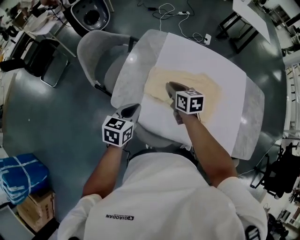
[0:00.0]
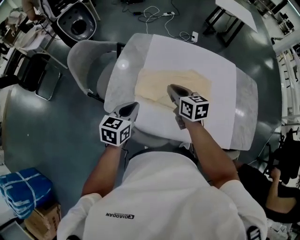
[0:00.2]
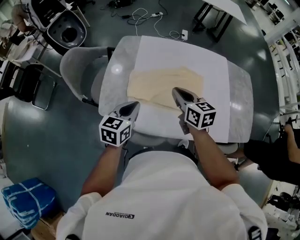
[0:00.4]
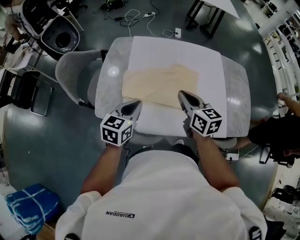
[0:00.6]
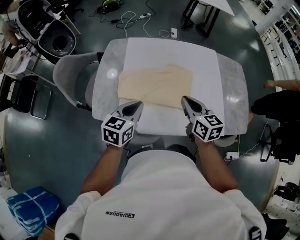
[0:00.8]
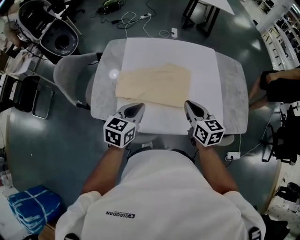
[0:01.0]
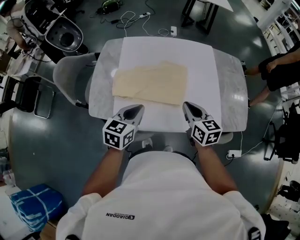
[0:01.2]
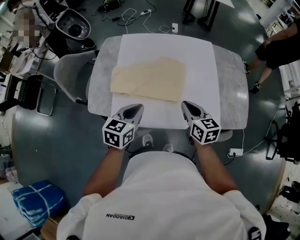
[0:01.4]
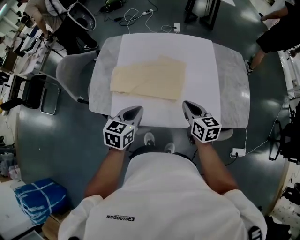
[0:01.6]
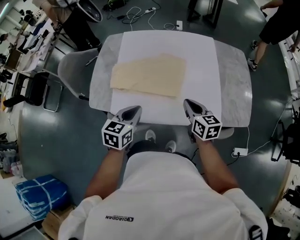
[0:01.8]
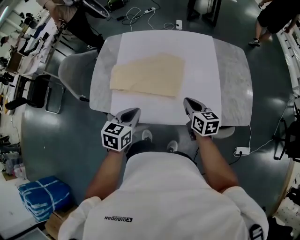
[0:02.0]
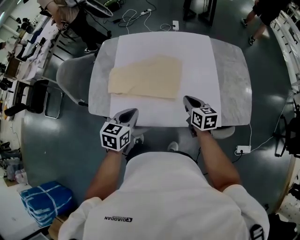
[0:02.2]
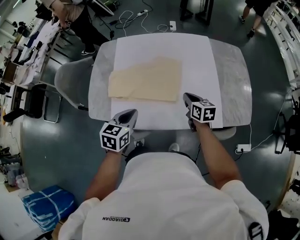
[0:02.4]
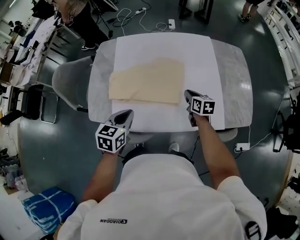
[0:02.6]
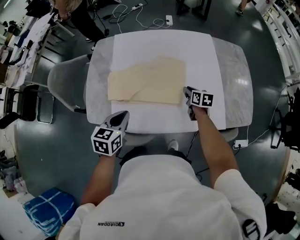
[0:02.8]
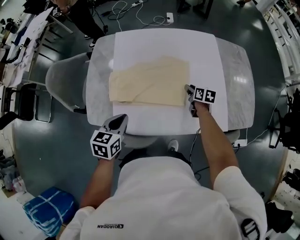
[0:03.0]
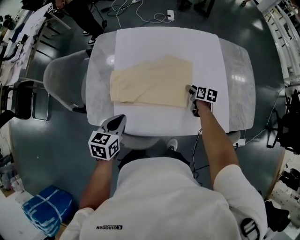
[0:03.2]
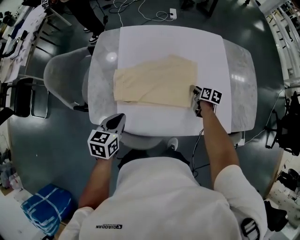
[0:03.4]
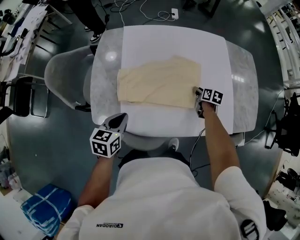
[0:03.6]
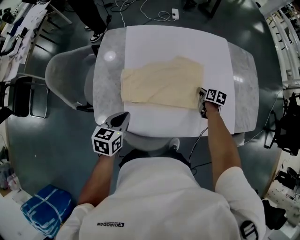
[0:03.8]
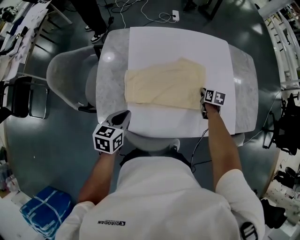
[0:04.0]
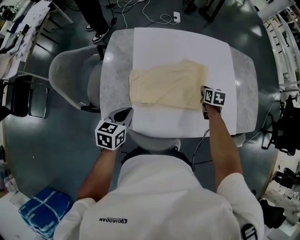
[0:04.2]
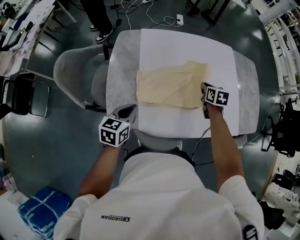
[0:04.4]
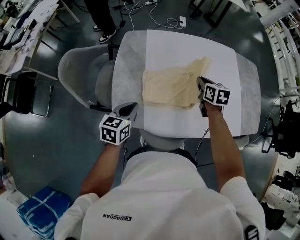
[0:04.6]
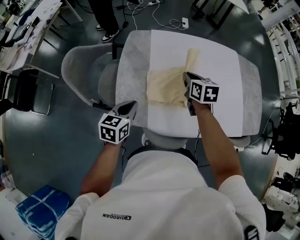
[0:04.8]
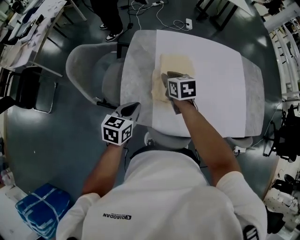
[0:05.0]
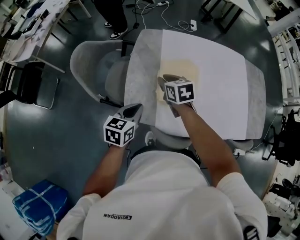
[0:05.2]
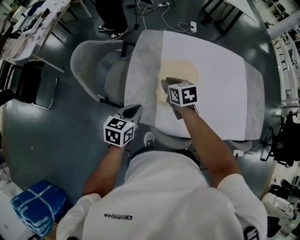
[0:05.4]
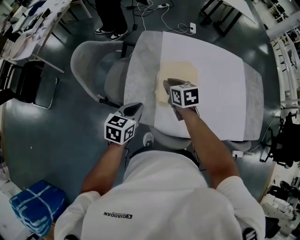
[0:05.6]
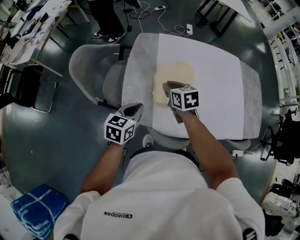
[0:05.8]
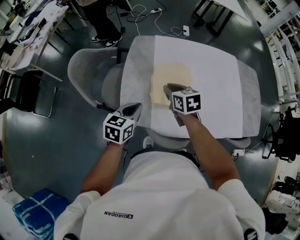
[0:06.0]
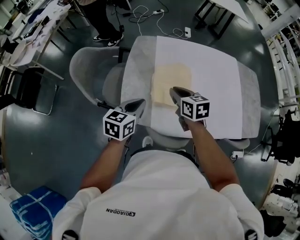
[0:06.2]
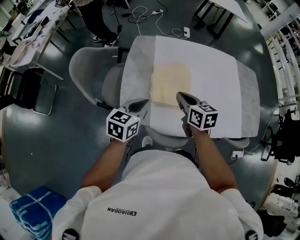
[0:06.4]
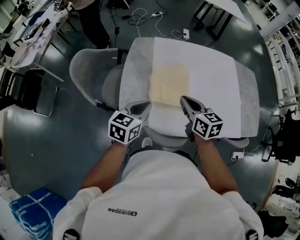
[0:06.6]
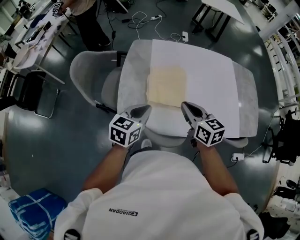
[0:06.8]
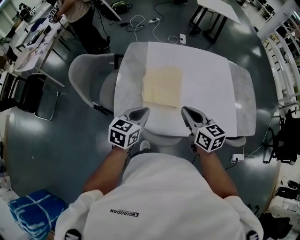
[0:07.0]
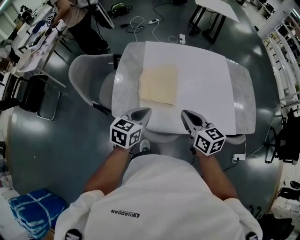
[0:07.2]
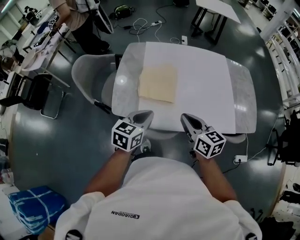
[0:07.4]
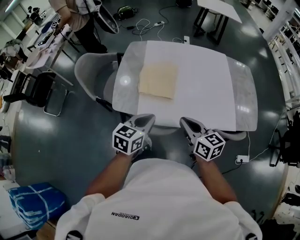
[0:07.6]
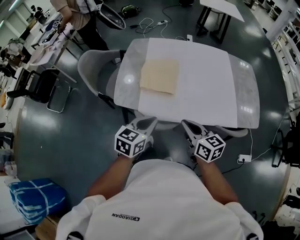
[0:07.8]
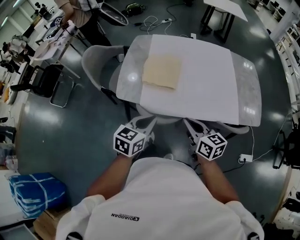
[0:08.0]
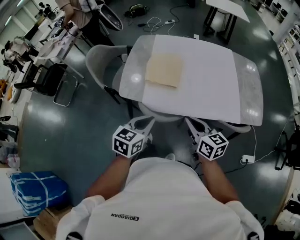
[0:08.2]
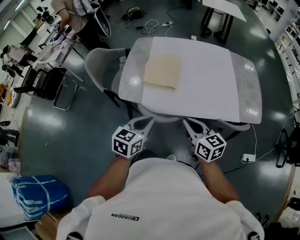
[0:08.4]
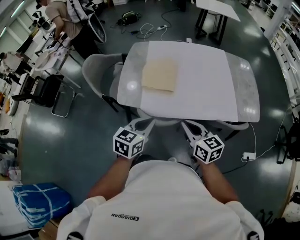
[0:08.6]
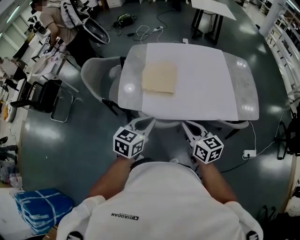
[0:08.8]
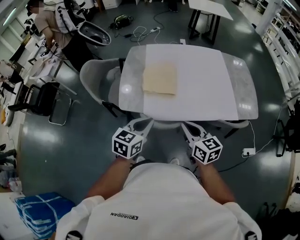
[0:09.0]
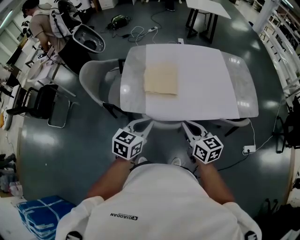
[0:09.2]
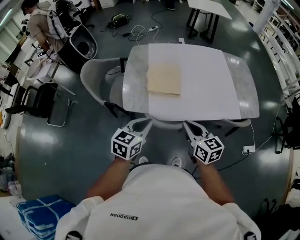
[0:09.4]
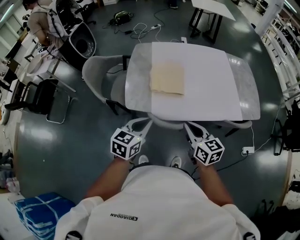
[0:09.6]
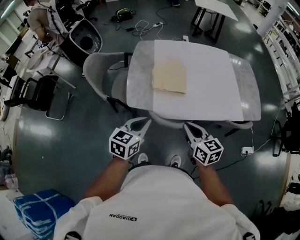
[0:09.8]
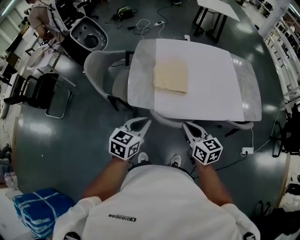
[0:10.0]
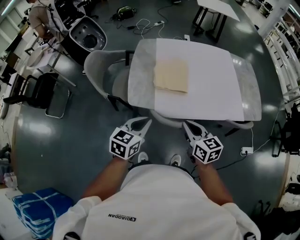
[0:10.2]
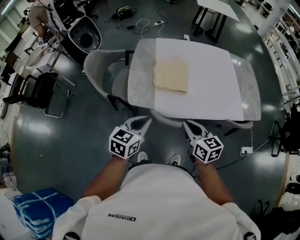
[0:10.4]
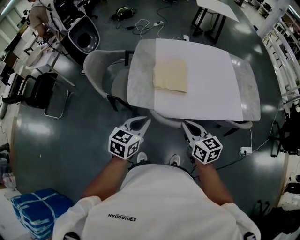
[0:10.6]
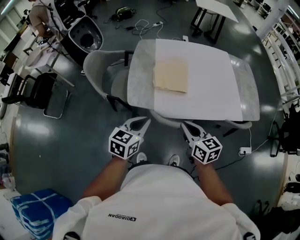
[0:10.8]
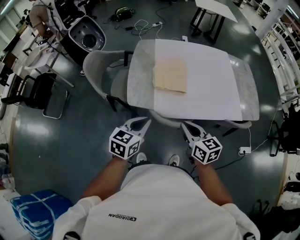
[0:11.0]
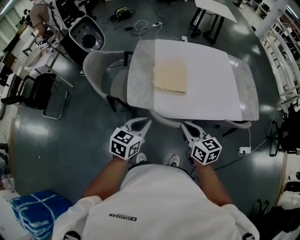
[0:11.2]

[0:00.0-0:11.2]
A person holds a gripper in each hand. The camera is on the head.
0:00.0 to 0:01.6: The right gripper goes about 40 cm to the right and backward, while the left gripper travels to the right by approximately 25 cm.
0:01.6 to 0:03.2: The right gripper travels downward and forward by roughly 30 cm, changes its angle by some 30 degrees, and opens, while the left gripper goes some 20 cm to the left, forward and downward.
0:03.2 to 0:04.8: The left gripper travels to the left by approximately 20 cm, while the right gripper travels to the left and upward by about 35 cm, turns by some 20 degrees, and closes its fingers.
0:04.8 to 0:06.4: The left gripper travels upward by about 5 cm. The right gripper is displaced backward by some 15 cm, and moves roughly 15 cm to the left and comes back.
0:06.4 to 0:08.0: The two grippers go approximately 35 cm backward and to the right.
0:08.0 to 0:09.6: Both grippers travel together to the left, some 15 cm.
0:09.6 to 0:11.2: The grippers stay close to where they were, moving slightly.

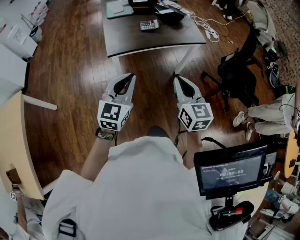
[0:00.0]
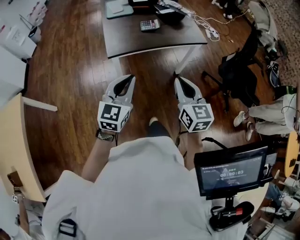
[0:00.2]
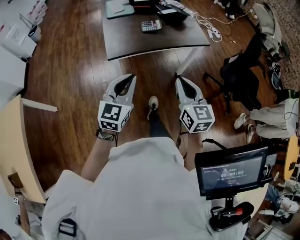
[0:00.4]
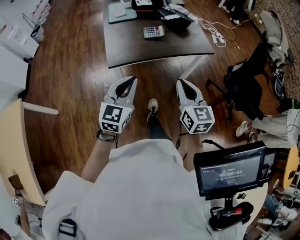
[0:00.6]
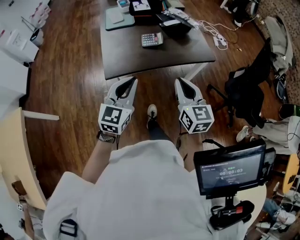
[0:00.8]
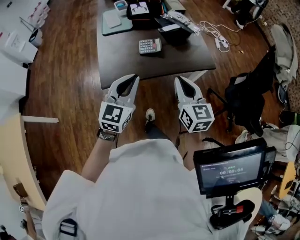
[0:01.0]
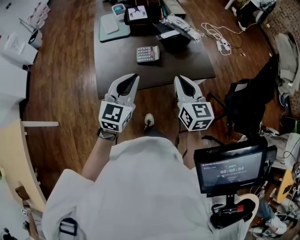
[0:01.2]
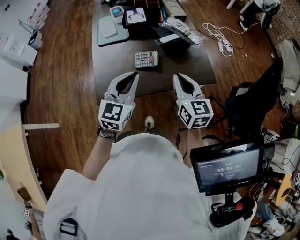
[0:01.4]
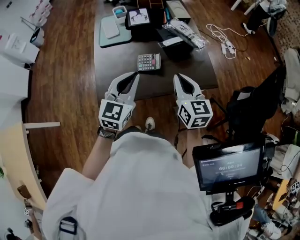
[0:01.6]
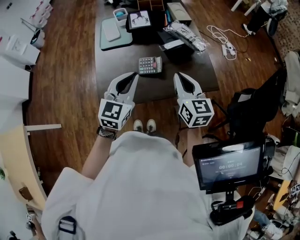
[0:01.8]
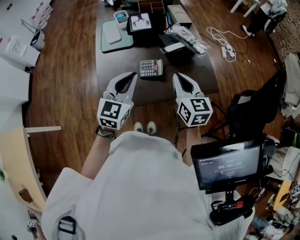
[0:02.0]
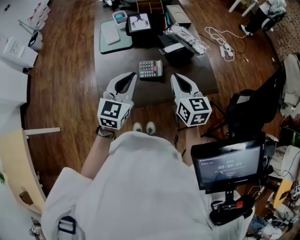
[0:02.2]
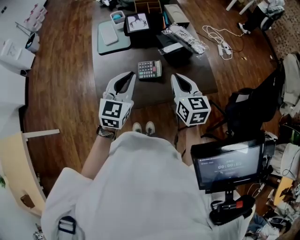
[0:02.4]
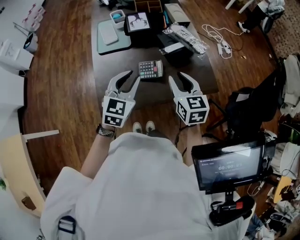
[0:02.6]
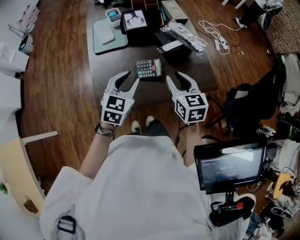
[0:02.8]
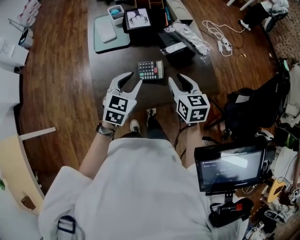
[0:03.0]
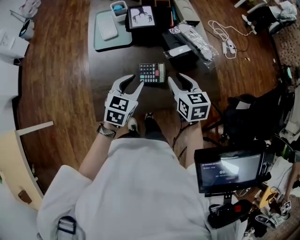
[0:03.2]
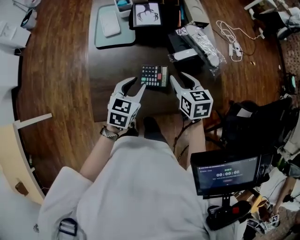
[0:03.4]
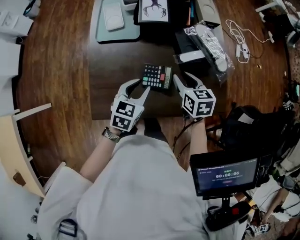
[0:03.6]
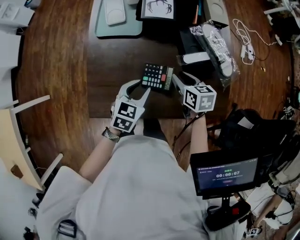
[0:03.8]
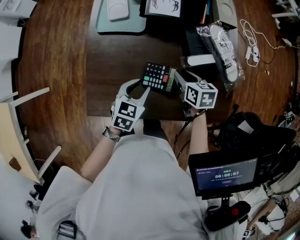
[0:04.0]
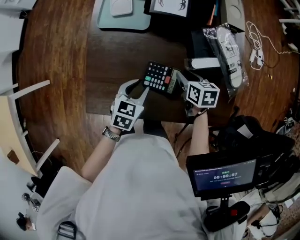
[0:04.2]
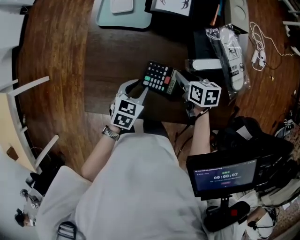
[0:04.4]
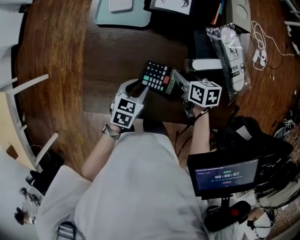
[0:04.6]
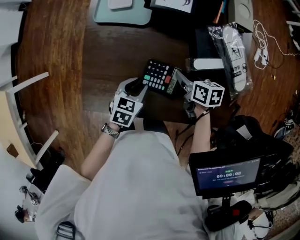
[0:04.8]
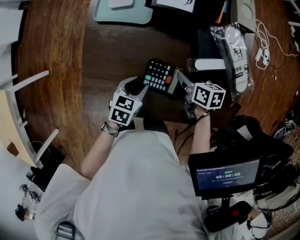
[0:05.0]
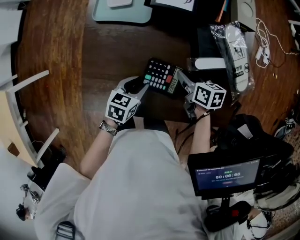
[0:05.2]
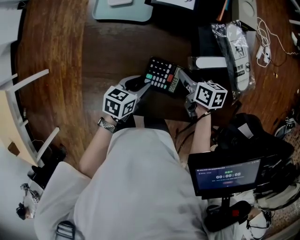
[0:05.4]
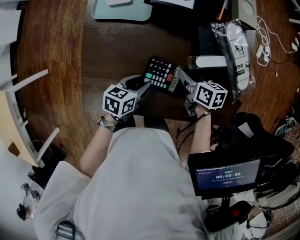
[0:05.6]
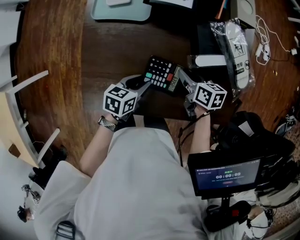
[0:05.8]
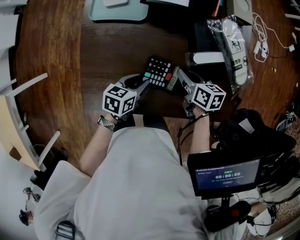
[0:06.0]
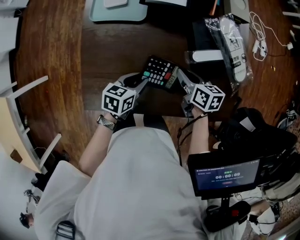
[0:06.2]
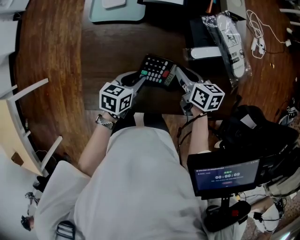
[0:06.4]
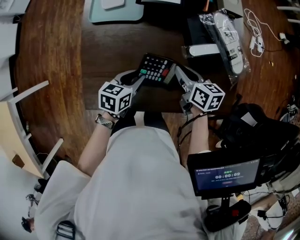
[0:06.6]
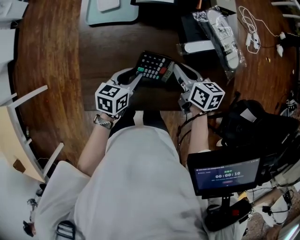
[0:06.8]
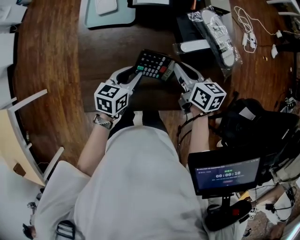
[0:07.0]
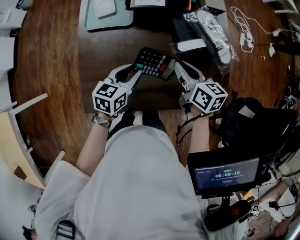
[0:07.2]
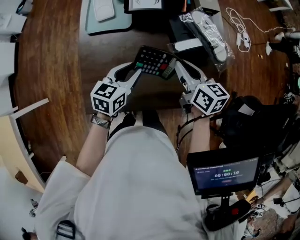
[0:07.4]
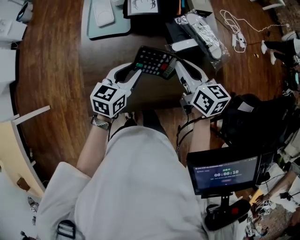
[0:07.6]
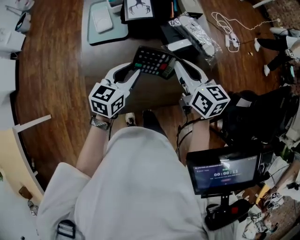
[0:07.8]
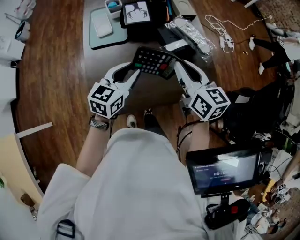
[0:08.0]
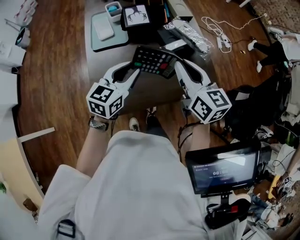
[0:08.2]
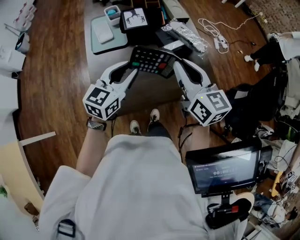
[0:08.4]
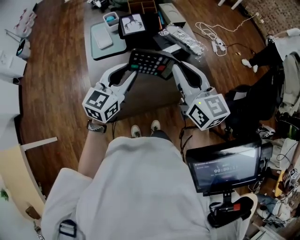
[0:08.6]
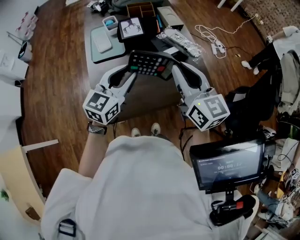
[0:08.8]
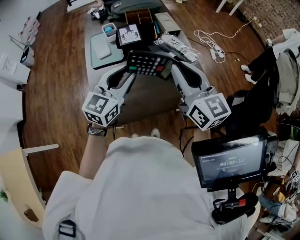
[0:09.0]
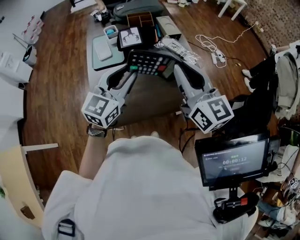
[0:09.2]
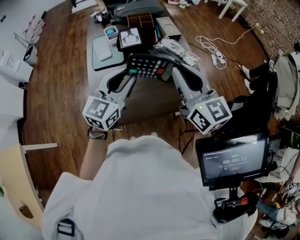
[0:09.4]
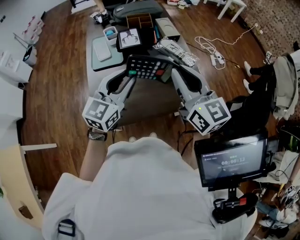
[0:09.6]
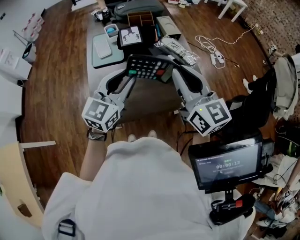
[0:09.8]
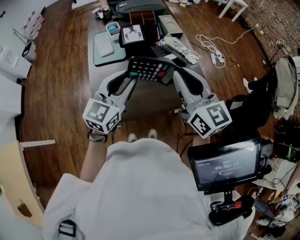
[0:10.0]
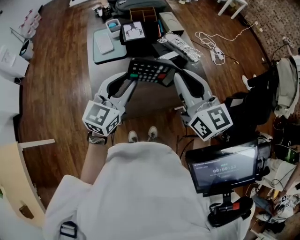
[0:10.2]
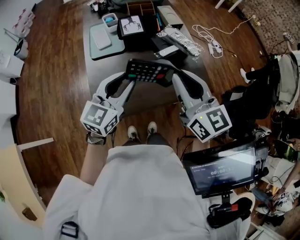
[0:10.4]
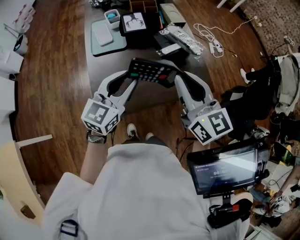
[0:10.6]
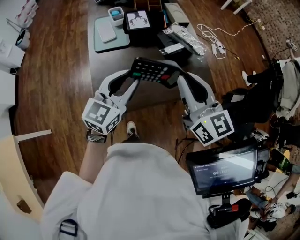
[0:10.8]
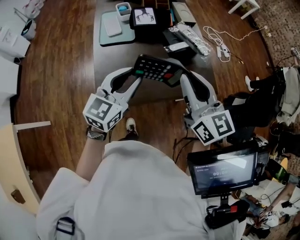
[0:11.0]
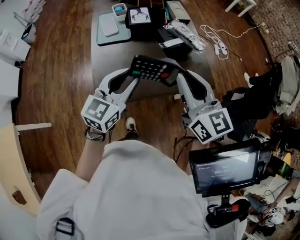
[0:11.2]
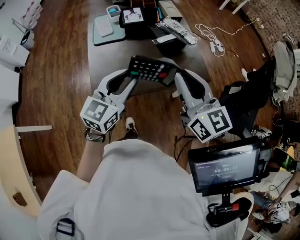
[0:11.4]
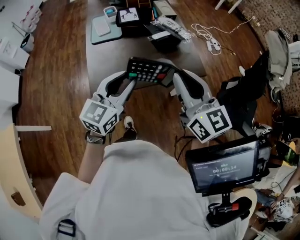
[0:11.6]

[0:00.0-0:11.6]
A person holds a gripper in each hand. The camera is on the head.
0:00.0 to 0:01.4: Both grippers travel together forward, about 35 cm.
0:01.4 to 0:02.8: The left gripper travels forward and downward by roughly 10 cm, and opens up; the right gripper heads forward, covering approximately 5 cm, and opens.
0:02.8 to 0:04.4: The left gripper shifts some 20 cm downward, and turns by approximately 40 degrees, while the right gripper moves downward and forward, roughly 30 cm, and swivels approximately 40 degrees.
0:04.4 to 0:05.8: The left gripper rotates about 20 degrees.
0:05.8 to 0:07.2: Both grippers travel together upward, some 10 cm. The left gripper swivels some 20 degrees. Meanwhile the right gripper turns by approximately 20 degrees.
0:07.2 to 0:08.8: The right gripper travels upward and backward by some 30 cm, and rotates about 40 degrees. Meanwhile the left gripper travels upward by roughly 25 cm, and changes its angle by about 40 degrees.
0:08.8 to 0:10.2: The grippers stay close to where they were, moving slightly.
0:10.2 to 0:11.6: The two grippers go approximately 20 cm backward.

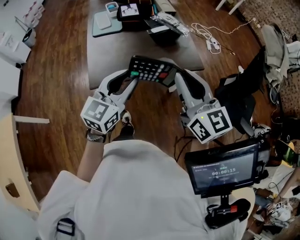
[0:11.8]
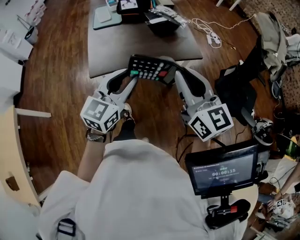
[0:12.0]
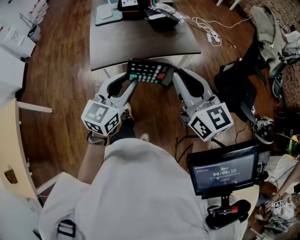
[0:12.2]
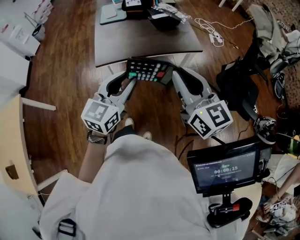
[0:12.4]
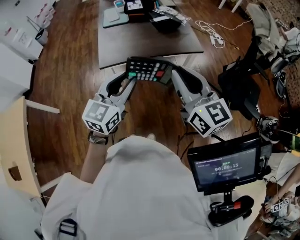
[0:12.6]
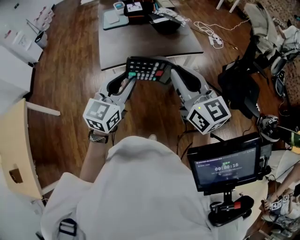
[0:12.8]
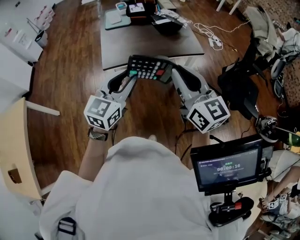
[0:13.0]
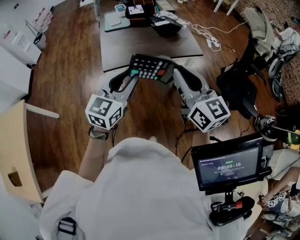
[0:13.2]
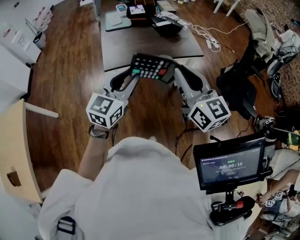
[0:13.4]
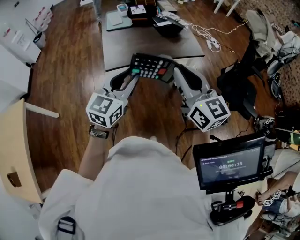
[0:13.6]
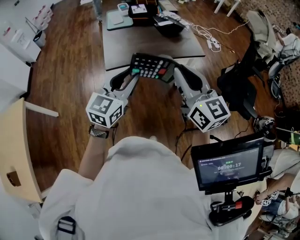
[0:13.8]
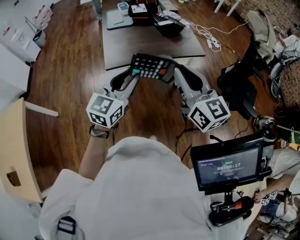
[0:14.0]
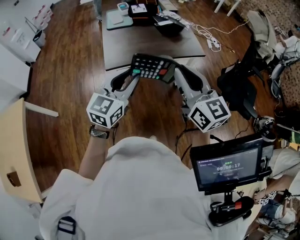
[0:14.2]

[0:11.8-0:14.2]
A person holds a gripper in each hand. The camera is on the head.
0:11.8 to 0:13.0: Both grippers move backward, roughly 15 cm.
0:13.0 to 0:14.2: The grippers make only small movements.
